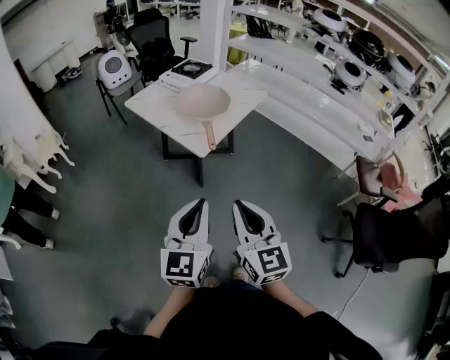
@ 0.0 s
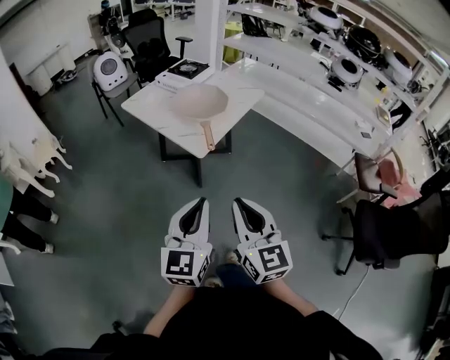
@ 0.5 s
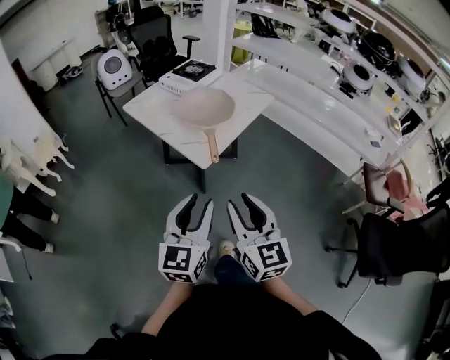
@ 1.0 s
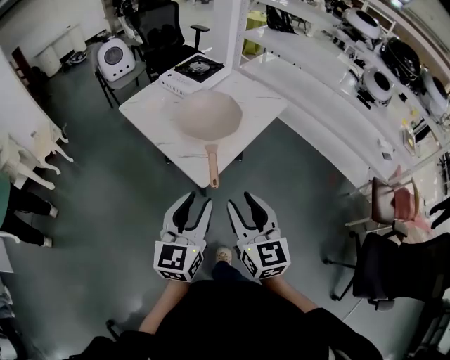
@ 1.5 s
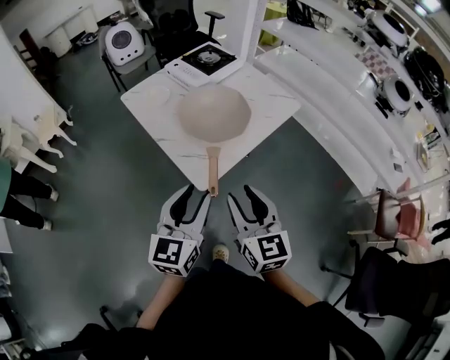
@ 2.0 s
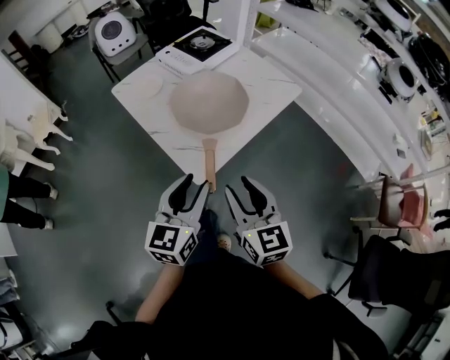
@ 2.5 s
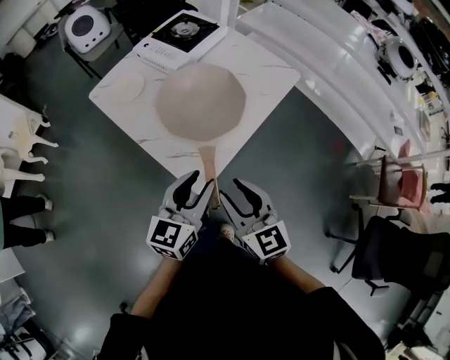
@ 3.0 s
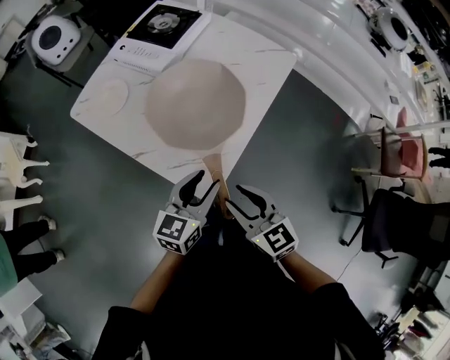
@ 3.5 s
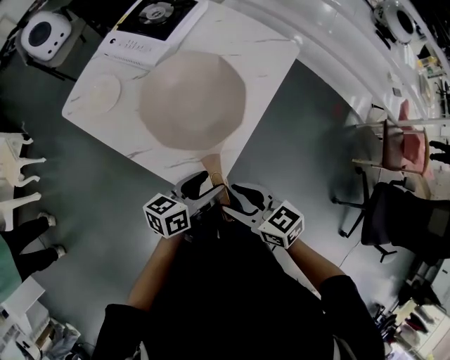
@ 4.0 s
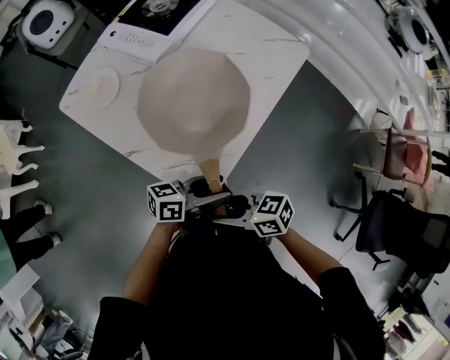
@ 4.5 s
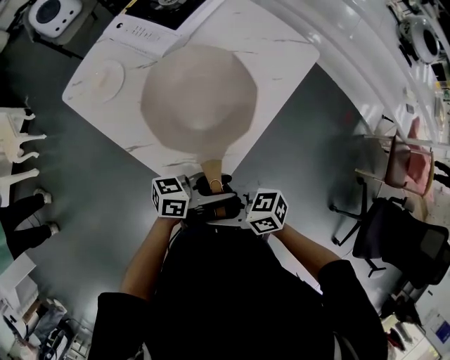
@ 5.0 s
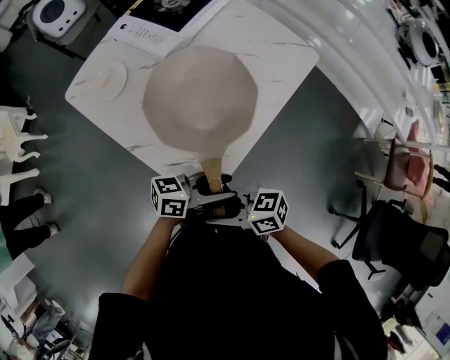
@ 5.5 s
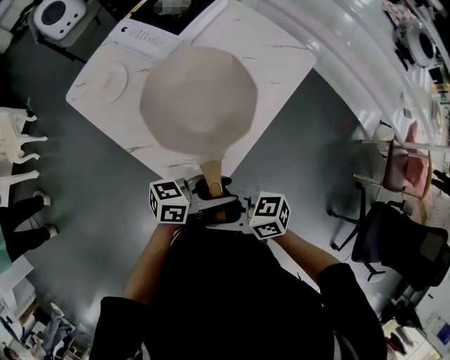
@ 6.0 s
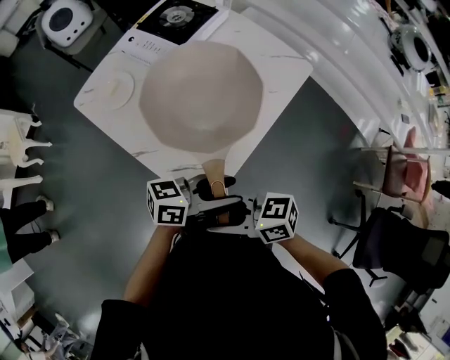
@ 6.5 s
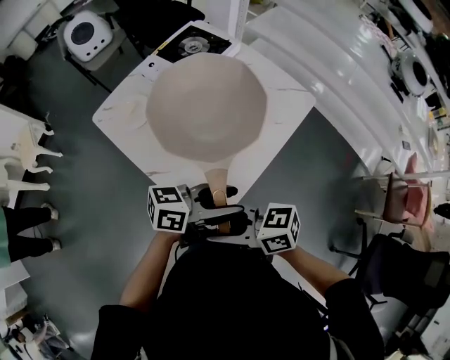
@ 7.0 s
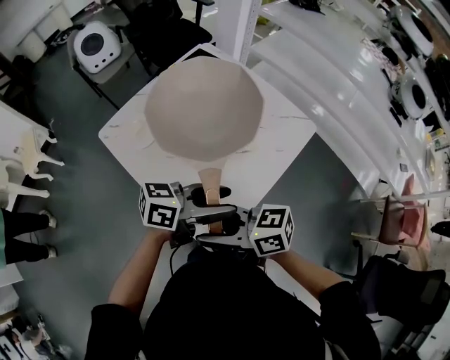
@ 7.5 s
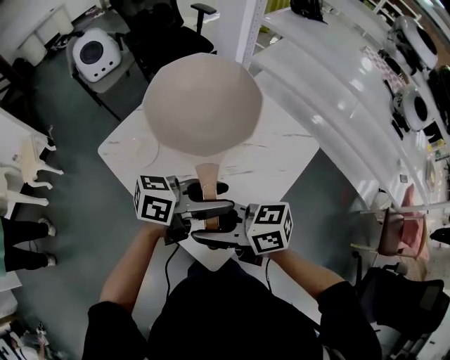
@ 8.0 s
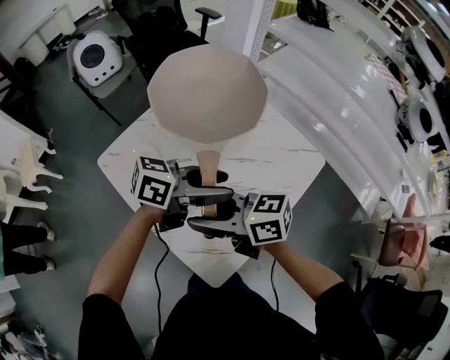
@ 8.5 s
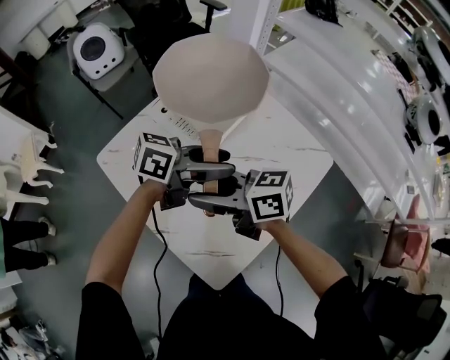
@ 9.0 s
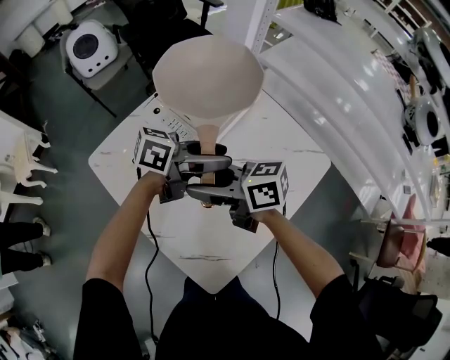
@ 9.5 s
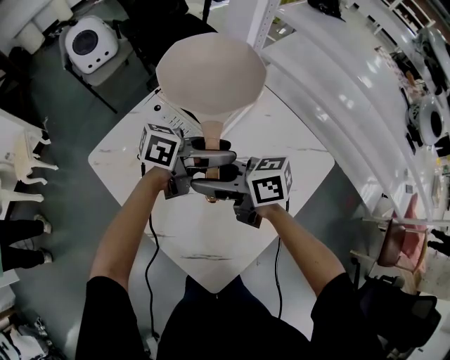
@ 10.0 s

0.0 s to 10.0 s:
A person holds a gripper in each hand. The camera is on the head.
0.0 to 2.0 s: Both grippers travel together forward, approximately 30 cm. The left gripper opens; the right gripper opens.
2.0 to 4.0 s: The grippers both shift downward and forward by roughly 25 cm. The right gripper rotates roughly 30 degrees; the left gripper changes its angle by roughly 60 degrees, and opens.
4.0 to 6.0 s: The right gripper changes place by approximately 5 cm, and turns by some 40 degrees. Meanwhile the left gripper changes place by approximately 5 cm, and changes its angle by approximately 20 degrees.
6.0 to 8.0 s: The right gripper changes place by some 25 cm. Meanwhile the left gripper moves approximately 25 cm.
8.0 to 10.0 s: The left gripper moves approximately 20 cm; the right gripper ends up roughly 20 cm from where it was.

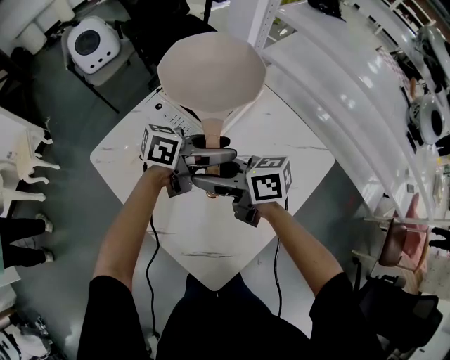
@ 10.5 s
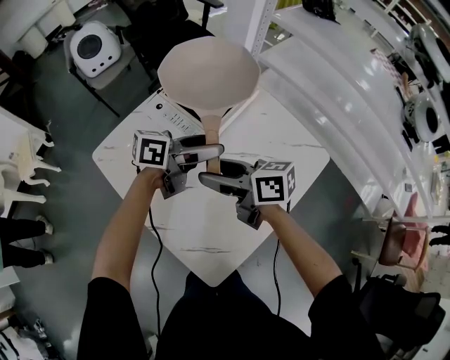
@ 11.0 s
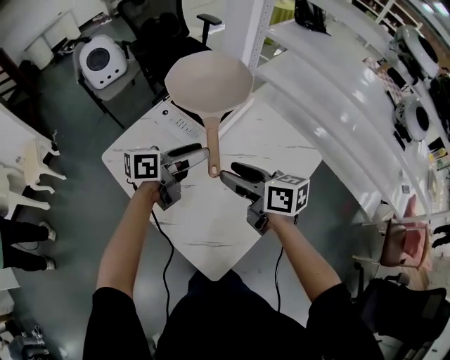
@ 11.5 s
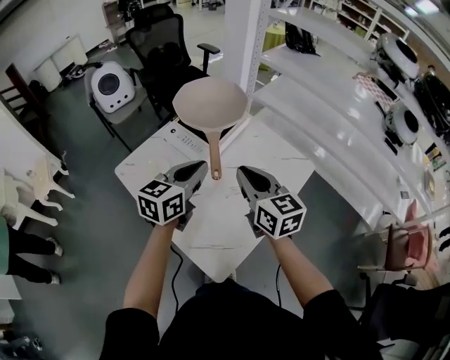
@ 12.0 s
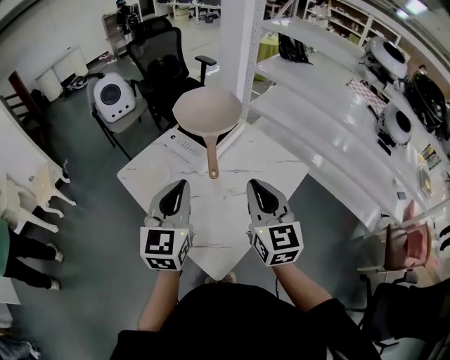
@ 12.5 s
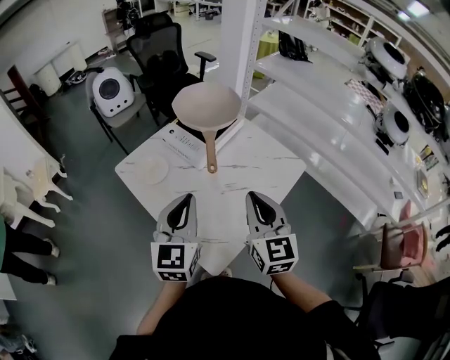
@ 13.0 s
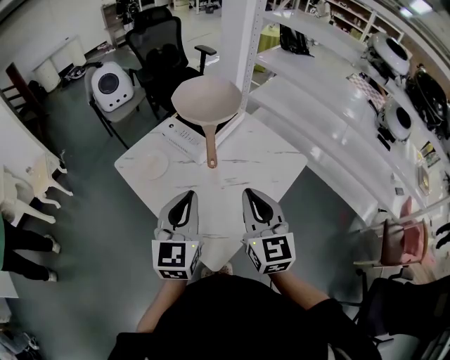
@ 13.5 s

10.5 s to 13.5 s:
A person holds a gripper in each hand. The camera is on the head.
10.5 to 12.0 s: The left gripper shifts by some 15 cm, changes its angle by about 50 degrees, and closes. Meanwhile the right gripper moves about 15 cm, rotates about 50 degrees, and closes.
12.0 to 13.5 s: The grippers both shift backward by about 15 cm. The left gripper changes its angle by some 30 degrees.

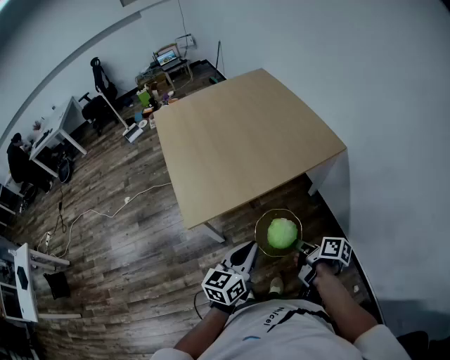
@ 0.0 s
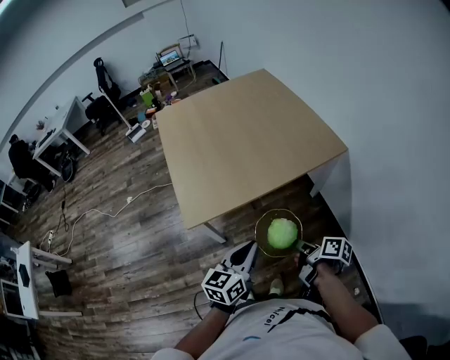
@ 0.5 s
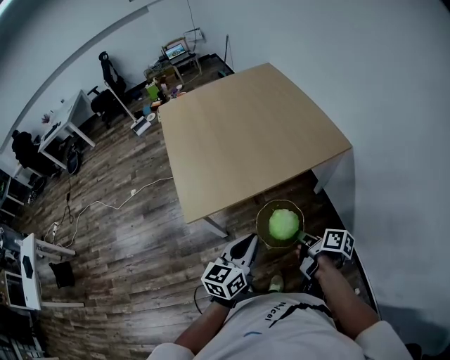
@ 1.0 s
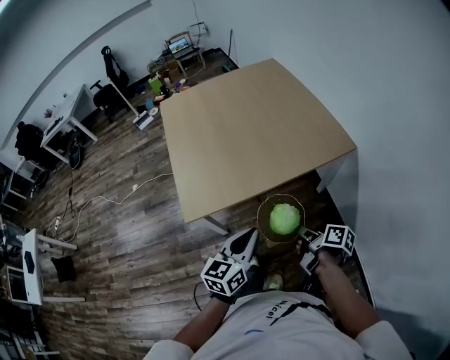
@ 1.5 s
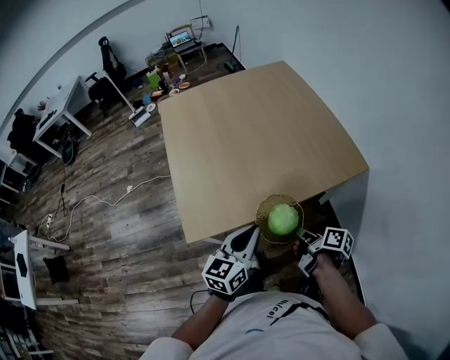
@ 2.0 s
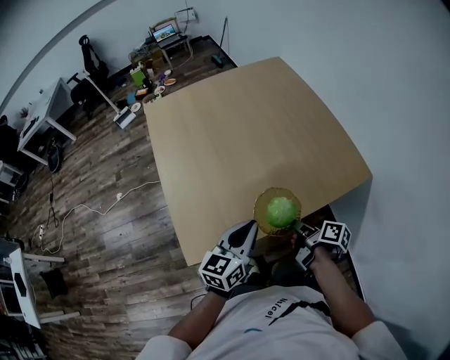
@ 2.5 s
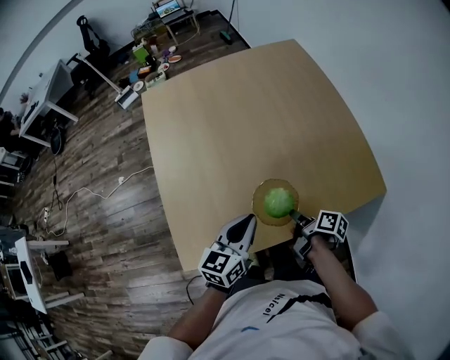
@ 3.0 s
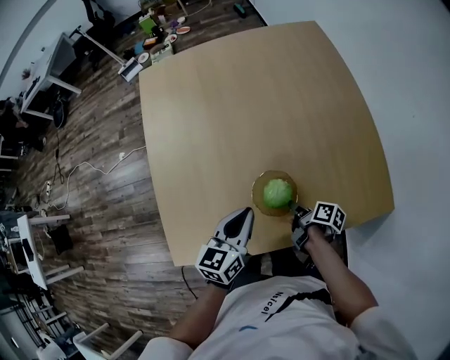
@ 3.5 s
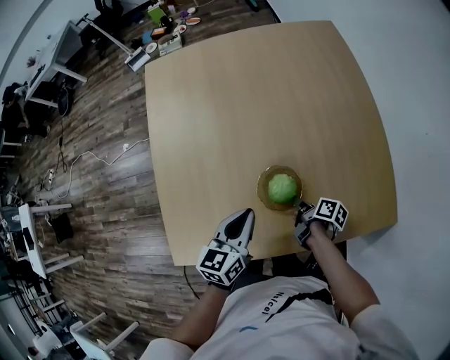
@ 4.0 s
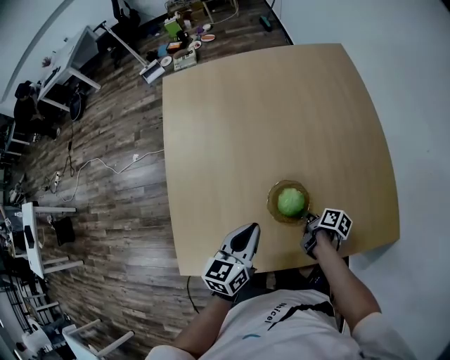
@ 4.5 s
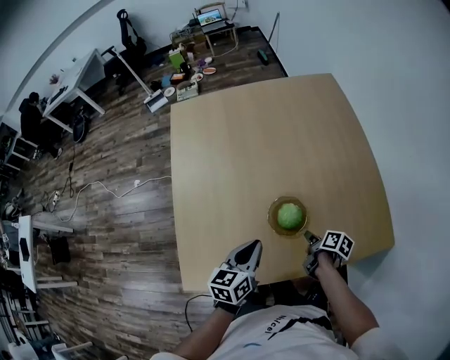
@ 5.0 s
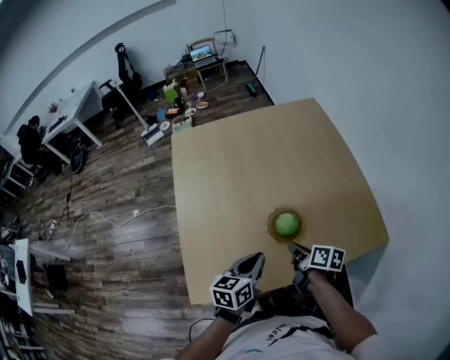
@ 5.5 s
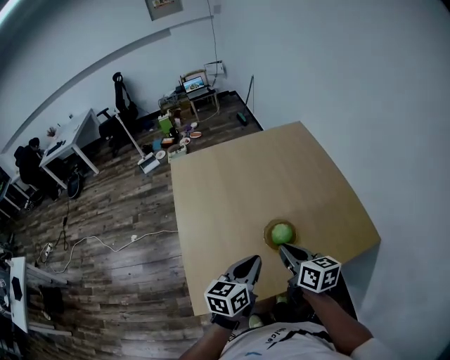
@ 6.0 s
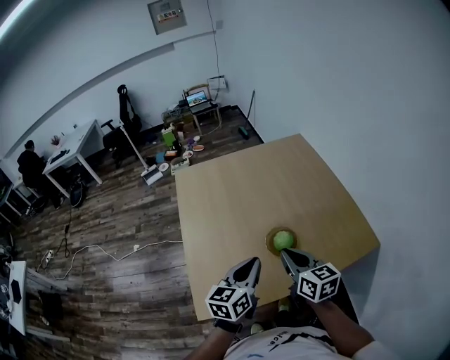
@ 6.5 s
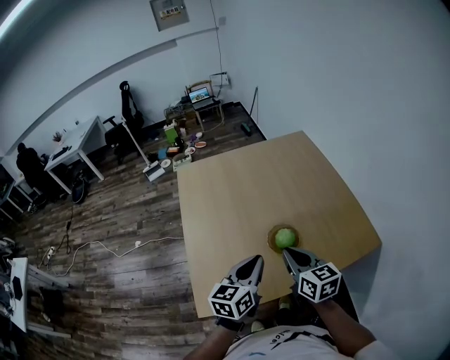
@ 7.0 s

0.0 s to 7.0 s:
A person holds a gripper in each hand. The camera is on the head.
0.0 to 2.0 s: The left gripper moves roughly 20 cm.
2.0 to 3.5 s: The left gripper changes place by approximately 30 cm.
5.0 to 7.0 s: The left gripper shifts about 15 cm upward.

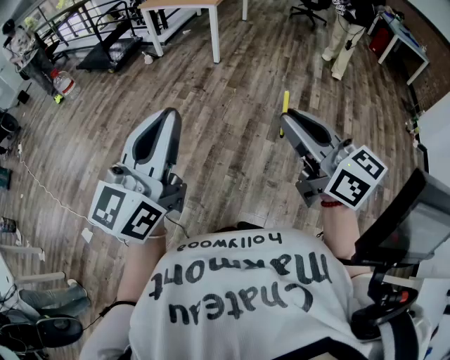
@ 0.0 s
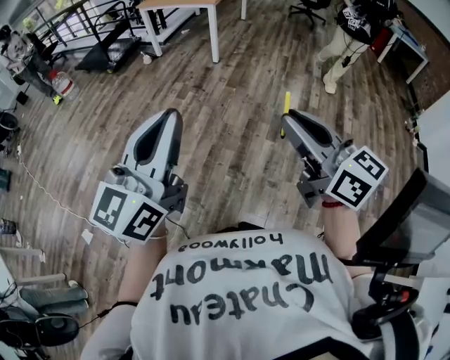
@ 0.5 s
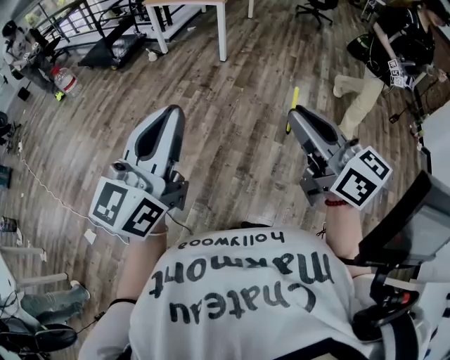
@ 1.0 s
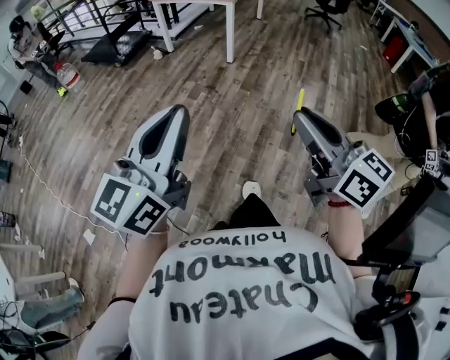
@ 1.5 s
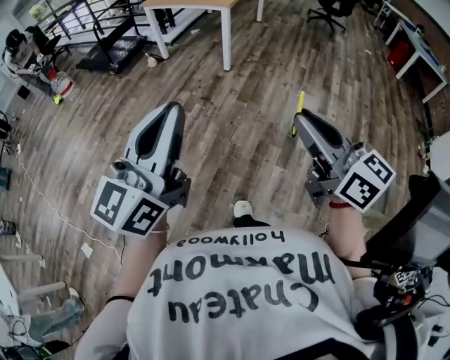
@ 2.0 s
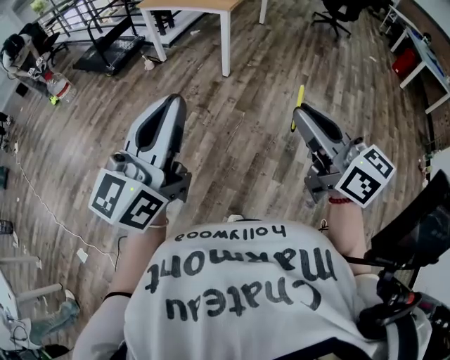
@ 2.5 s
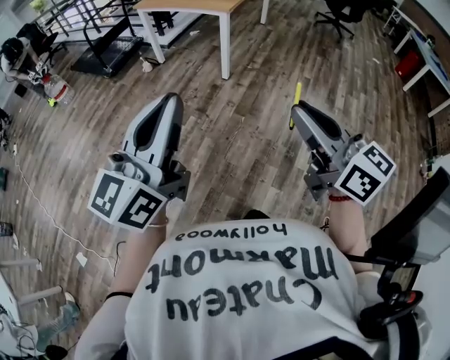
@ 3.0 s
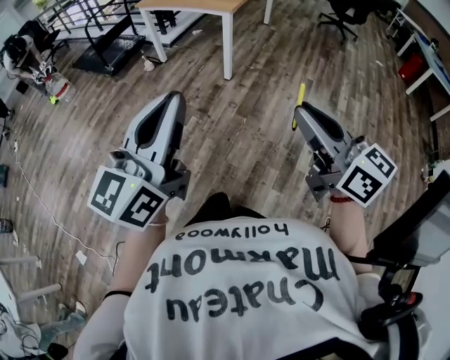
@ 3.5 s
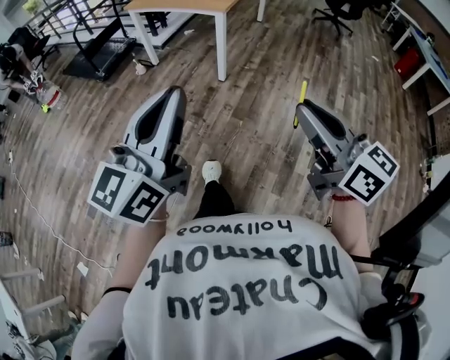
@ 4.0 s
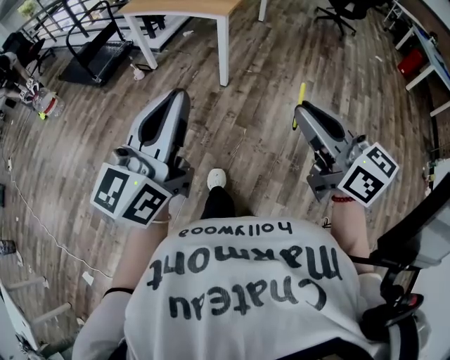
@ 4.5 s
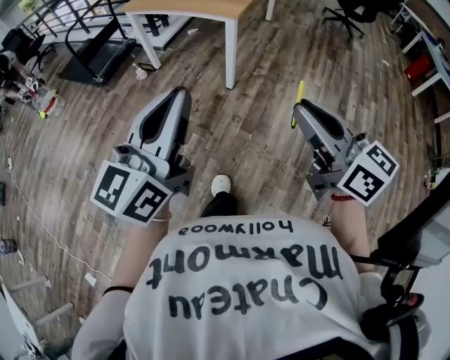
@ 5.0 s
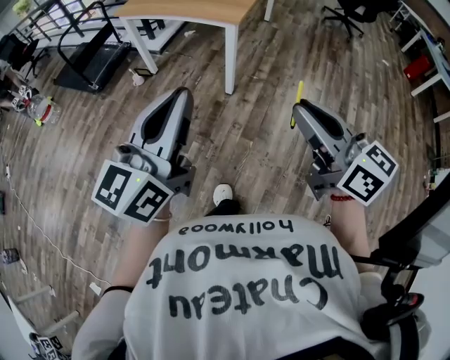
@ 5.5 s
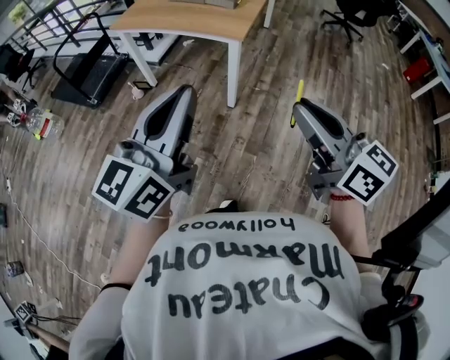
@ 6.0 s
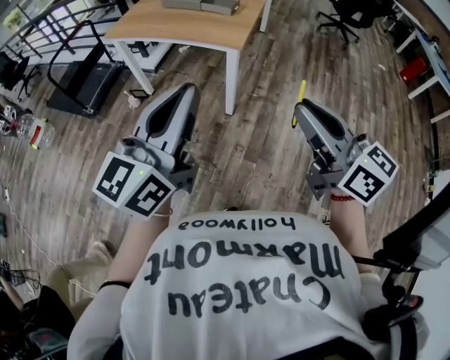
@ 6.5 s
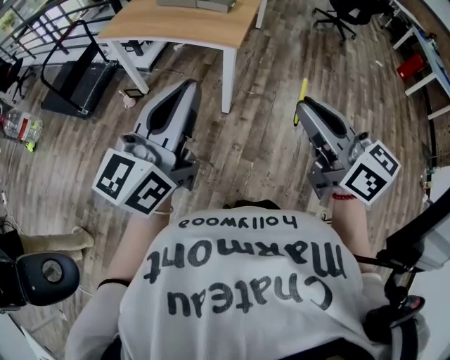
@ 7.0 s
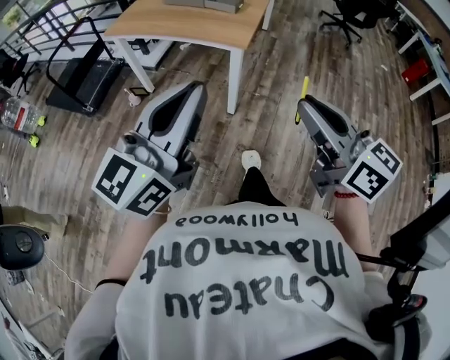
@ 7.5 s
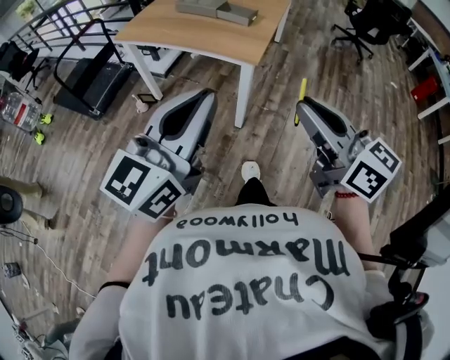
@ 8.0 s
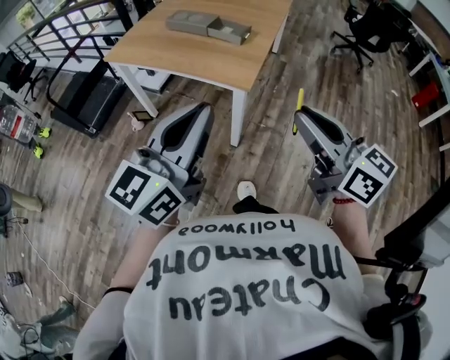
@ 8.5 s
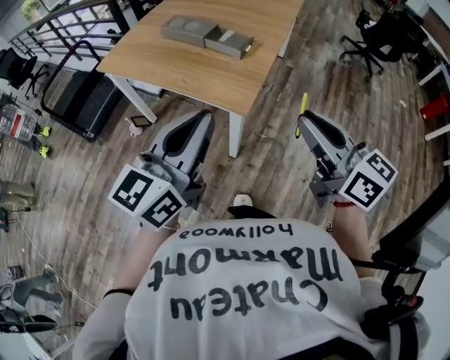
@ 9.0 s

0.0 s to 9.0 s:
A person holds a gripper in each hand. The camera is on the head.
0.0 to 2.0 s: The grippers both shift forward by about 25 cm.
2.0 to 4.5 s: The grippers both shift forward by some 35 cm.
4.5 to 7.0 s: The two grippers go approximately 35 cm forward.
7.0 to 9.0 s: Both grippers travel together forward, approximately 30 cm.
